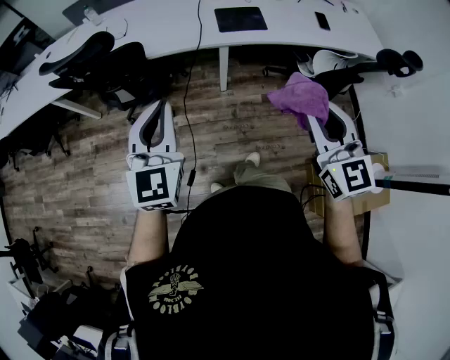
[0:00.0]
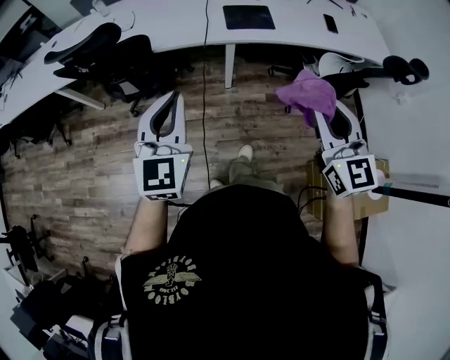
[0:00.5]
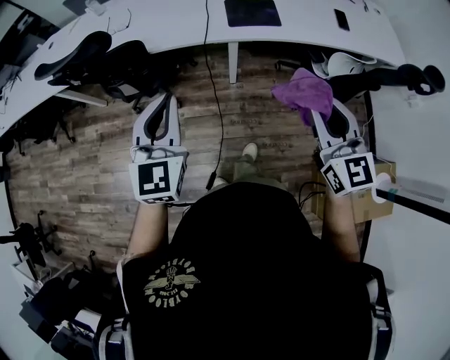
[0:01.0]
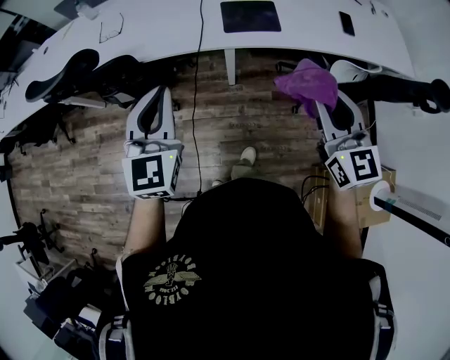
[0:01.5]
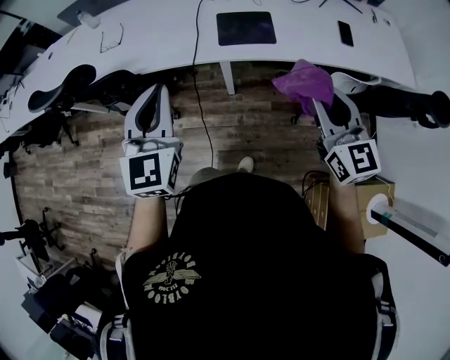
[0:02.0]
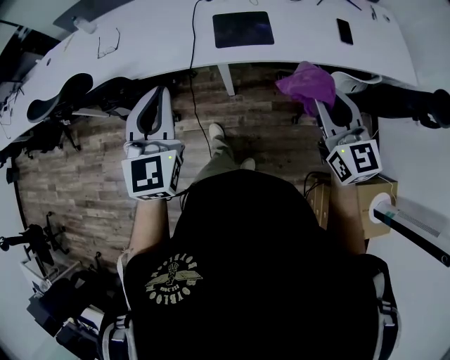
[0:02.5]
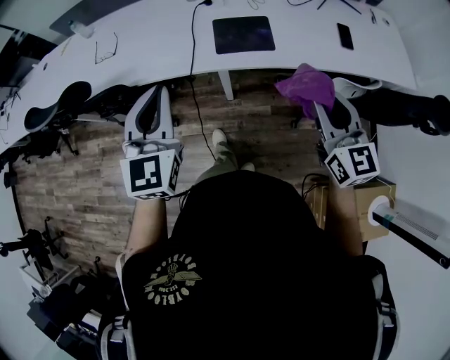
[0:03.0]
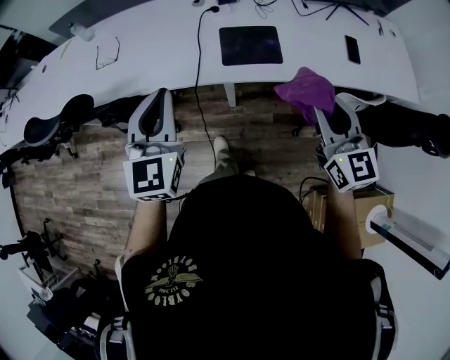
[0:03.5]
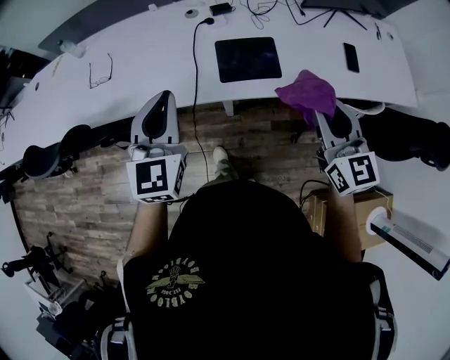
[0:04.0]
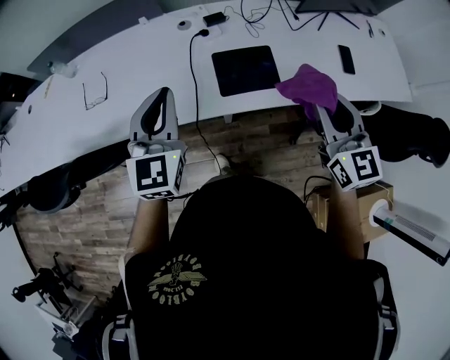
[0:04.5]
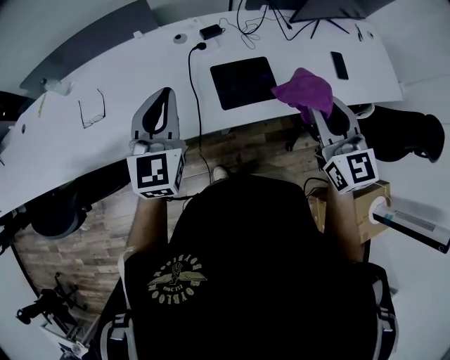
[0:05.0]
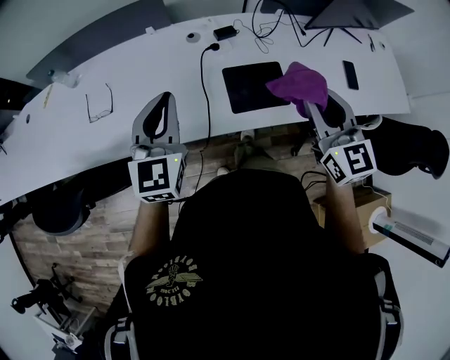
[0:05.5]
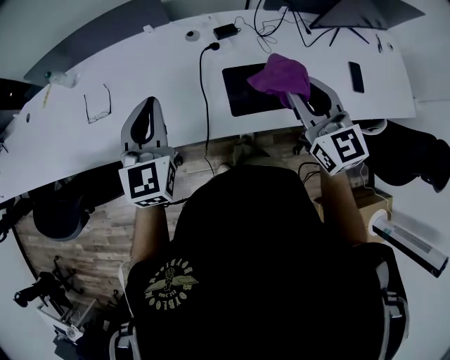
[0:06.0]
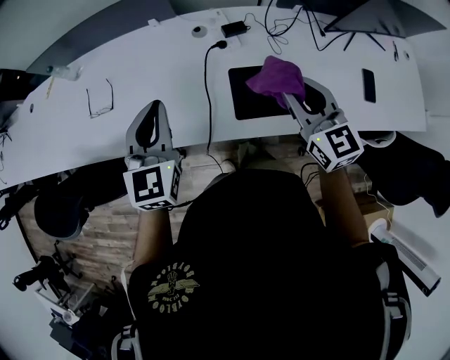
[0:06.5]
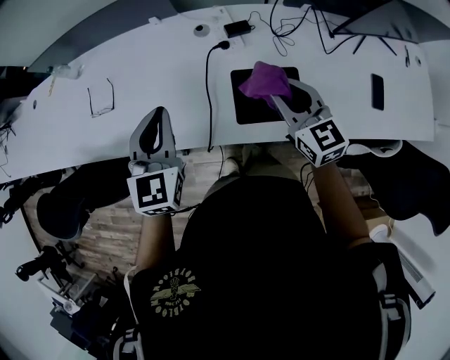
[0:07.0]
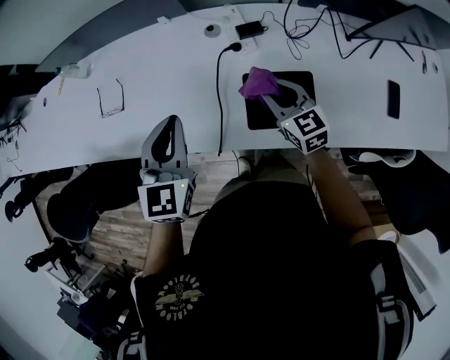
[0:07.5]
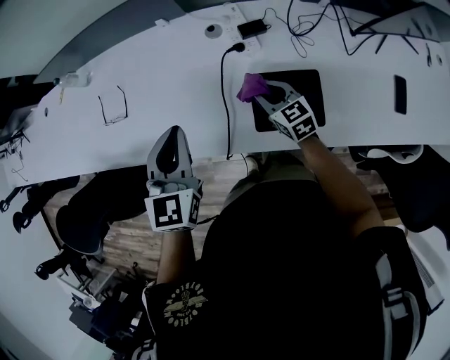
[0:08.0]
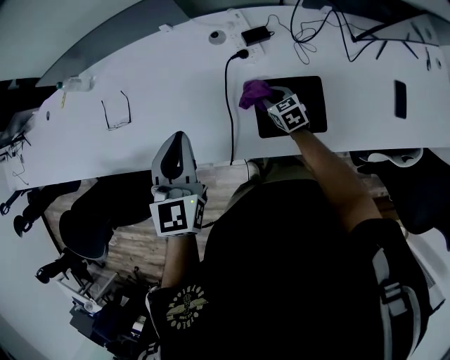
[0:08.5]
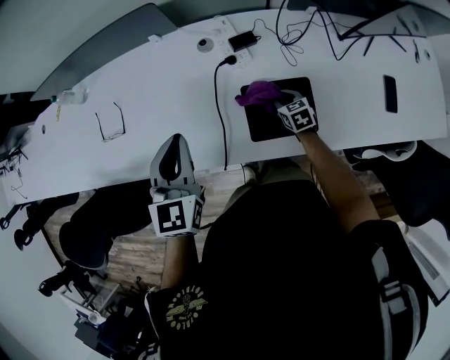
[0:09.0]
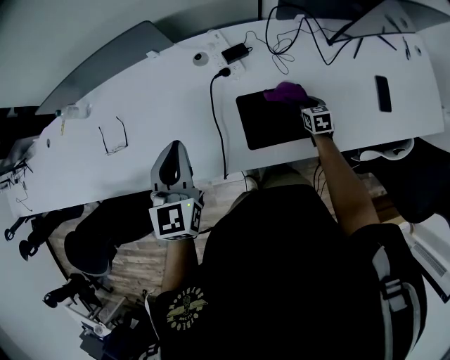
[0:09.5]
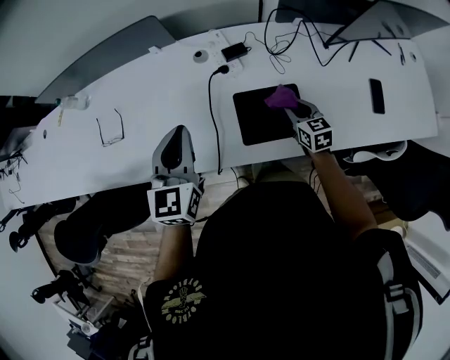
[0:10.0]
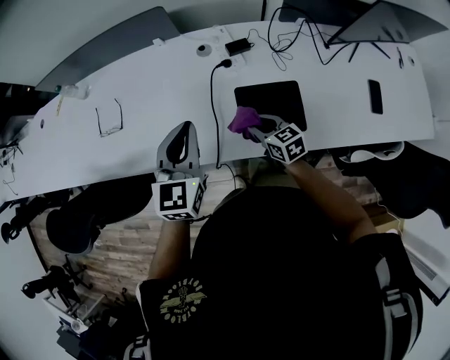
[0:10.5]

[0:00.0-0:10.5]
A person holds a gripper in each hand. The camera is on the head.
0:00.0 to 0:02.0: Both grippers move forward and to the right, roughly 25 cm.
0:02.0 to 0:04.0: Both grippers travel together forward, roughly 20 cm.
0:04.0 to 0:06.5: The left gripper goes approximately 20 cm forward, while the right gripper heads forward and to the left, covering about 25 cm.
0:06.5 to 0:08.5: The left gripper ends up some 5 cm from where it was. The right gripper shifts about 35 cm downward, and tips its fingers downward by about 30 degrees.
0:08.5 to 0:10.5: The right gripper heads backward and upward, covering some 15 cm, and goes to the right and returns, approximately 20 cm each way.

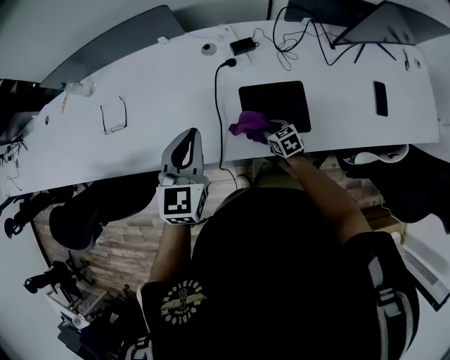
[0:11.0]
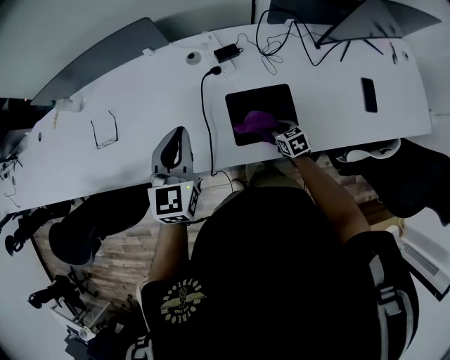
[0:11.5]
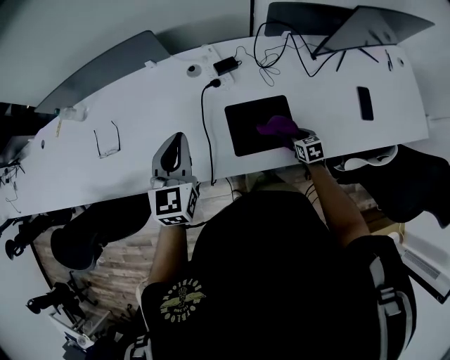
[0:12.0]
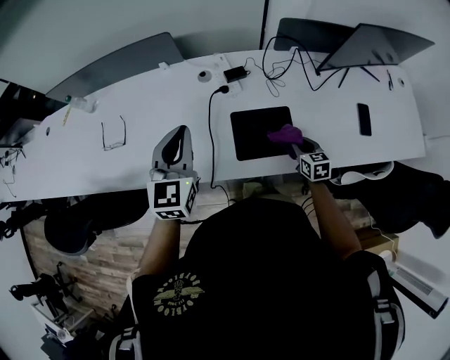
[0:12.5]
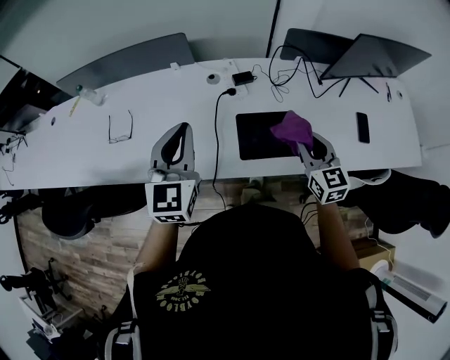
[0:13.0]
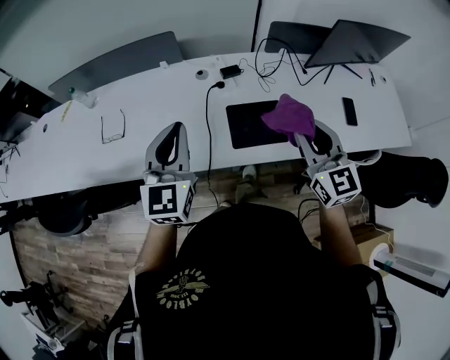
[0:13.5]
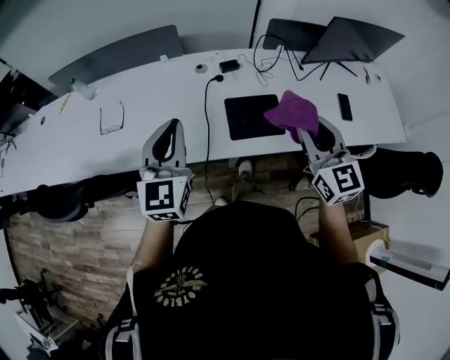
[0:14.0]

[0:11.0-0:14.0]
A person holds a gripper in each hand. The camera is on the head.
0:11.0 to 0:12.5: The right gripper heads to the right and upward, covering some 20 cm, and changes its angle by about 20 degrees; the left gripper changes place by approximately 5 cm.
0:12.5 to 0:14.0: The right gripper travels upward by some 35 cm, and tips its fingers upward by some 40 degrees, while the left gripper is displaced backward and upward by approximately 15 cm.

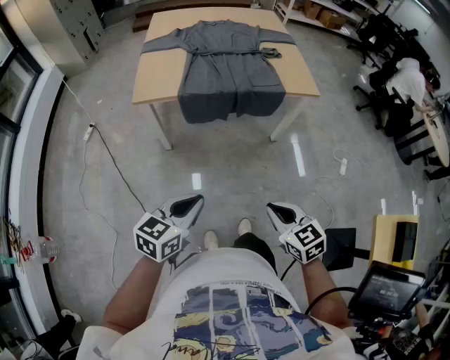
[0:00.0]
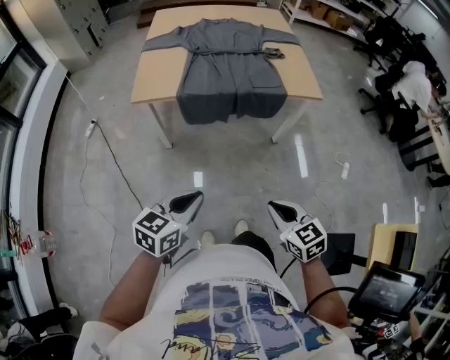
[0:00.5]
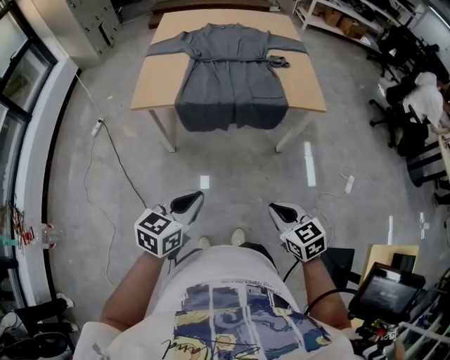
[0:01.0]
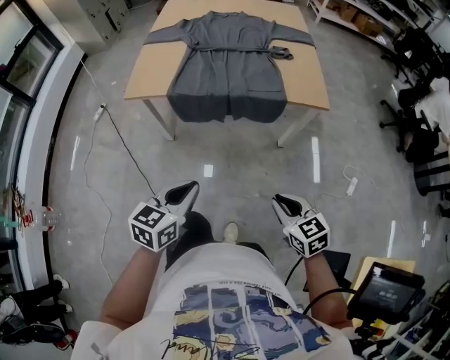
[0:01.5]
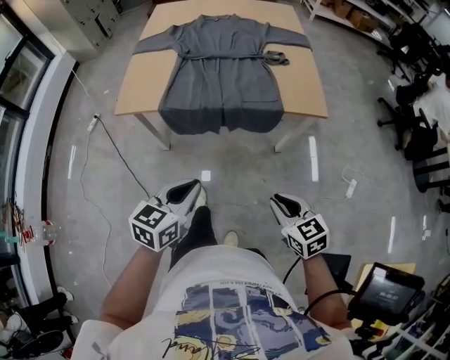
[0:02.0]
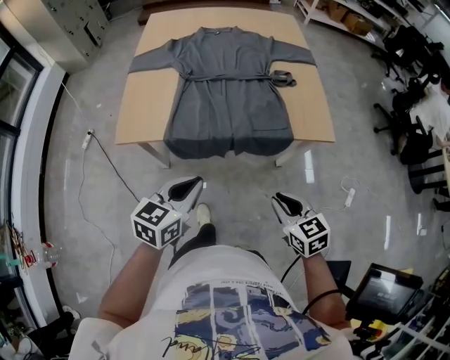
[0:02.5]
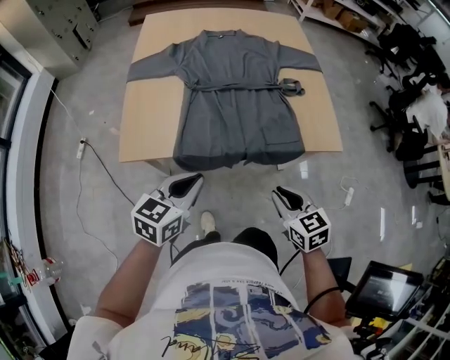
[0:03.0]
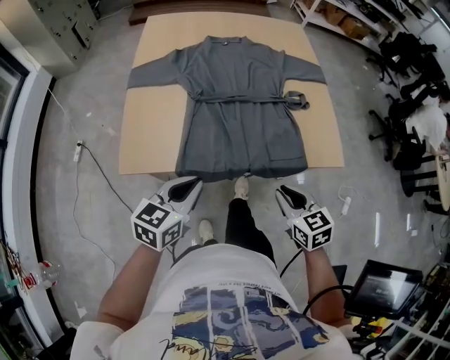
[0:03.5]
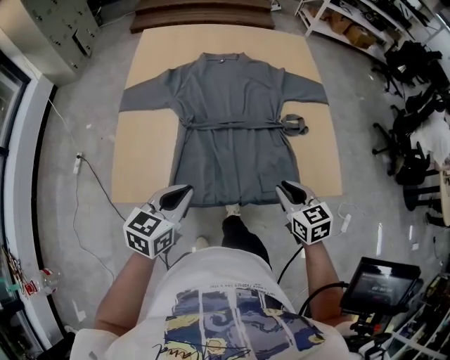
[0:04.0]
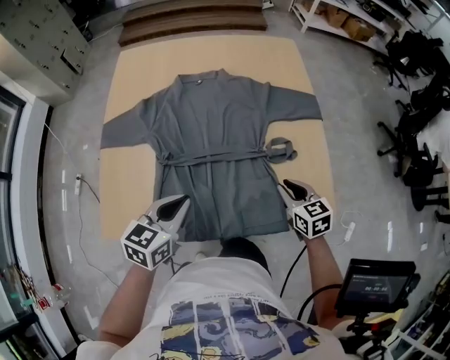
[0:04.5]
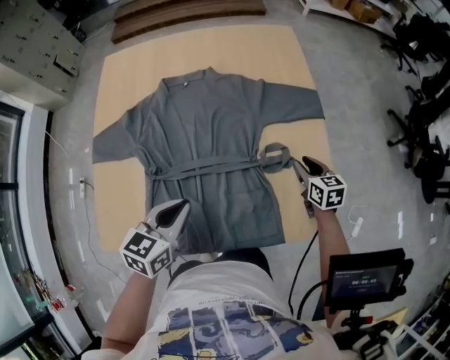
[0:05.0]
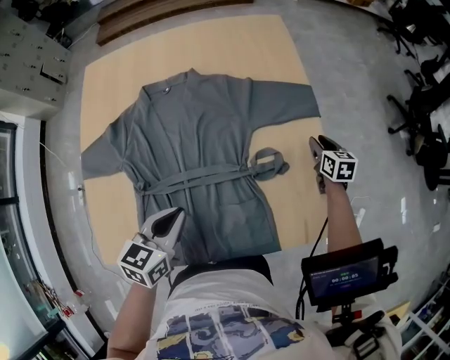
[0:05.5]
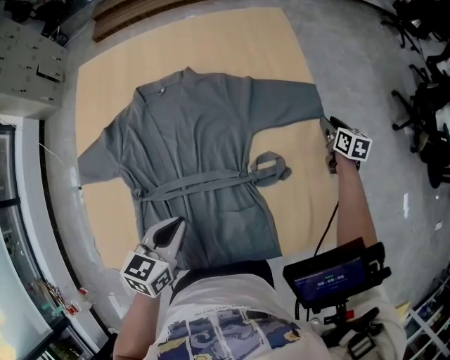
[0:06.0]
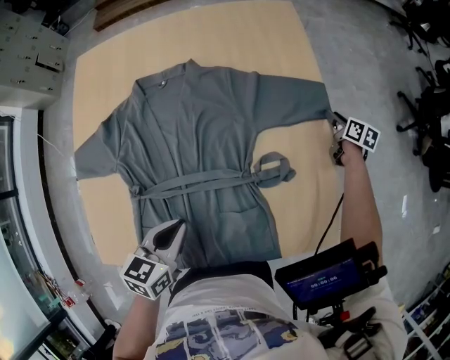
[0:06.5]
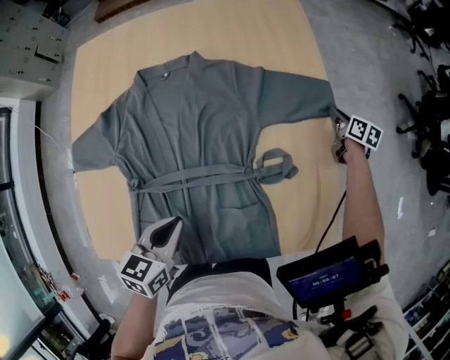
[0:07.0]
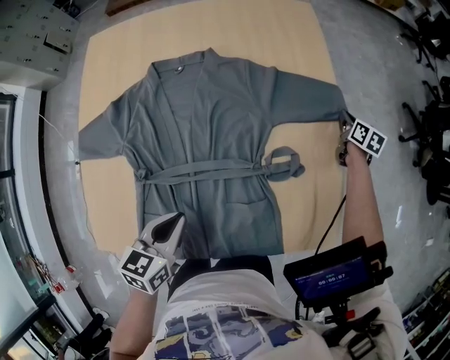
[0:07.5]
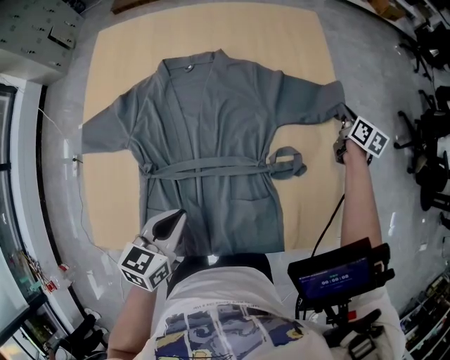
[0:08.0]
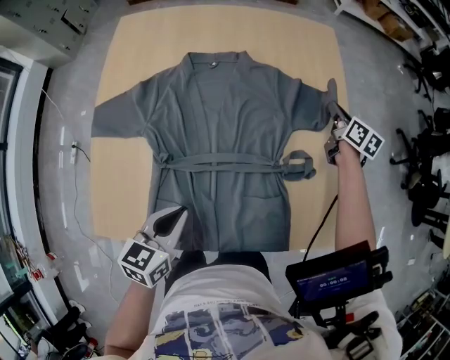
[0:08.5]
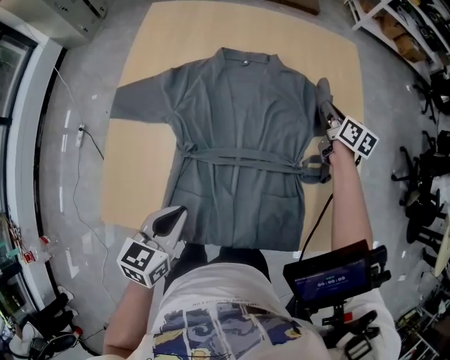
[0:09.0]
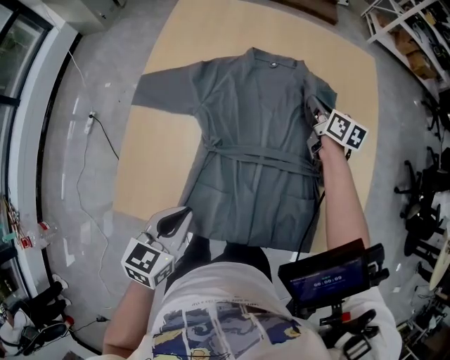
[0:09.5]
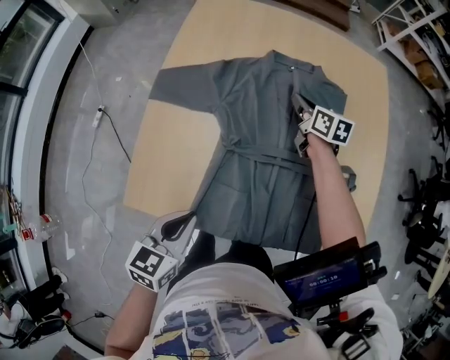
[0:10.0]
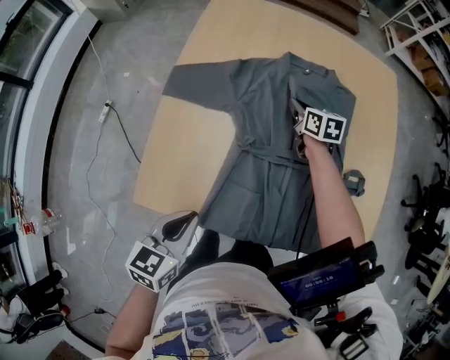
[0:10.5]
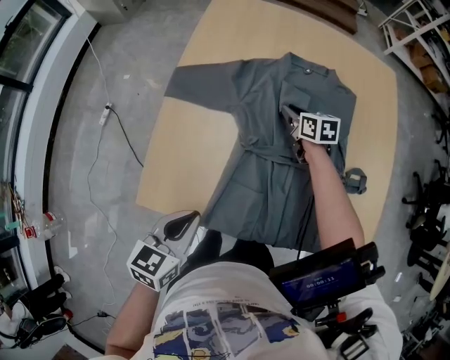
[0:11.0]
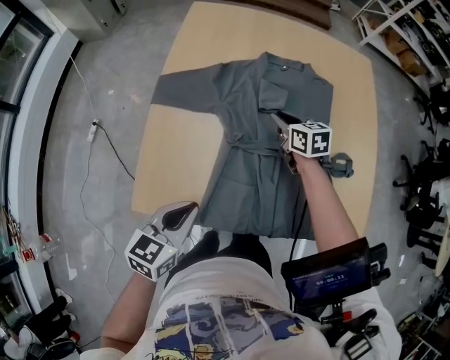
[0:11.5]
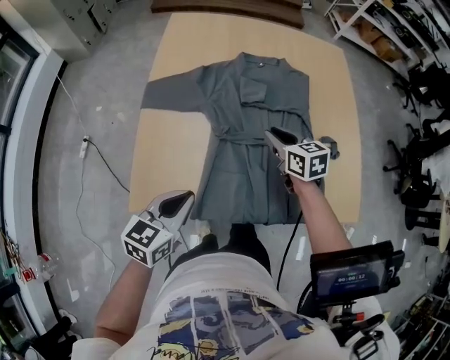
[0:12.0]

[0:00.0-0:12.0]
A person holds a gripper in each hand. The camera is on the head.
0:00.0 to 0:02.0: Both grippers travel together forward and to the right, about 20 cm.
0:02.0 to 0:04.0: The left gripper is displaced forward and to the left by about 35 cm. Meanwhile the right gripper shifts roughly 35 cm forward.
0:04.0 to 0:06.0: The right gripper travels forward and to the right by some 50 cm, turns by about 30 degrees, and opens up, while the left gripper goes roughly 25 cm forward and to the right.
0:06.0 to 0:08.0: The right gripper travels upward and to the left by approximately 10 cm, and closes up, while the left gripper shifts by roughly 5 cm.
0:08.0 to 0:10.0: The right gripper goes roughly 50 cm to the left, and swivels roughly 30 degrees, while the left gripper is displaced to the left and backward by approximately 20 cm.
0:10.0 to 0:12.0: The right gripper is displaced backward by some 20 cm.

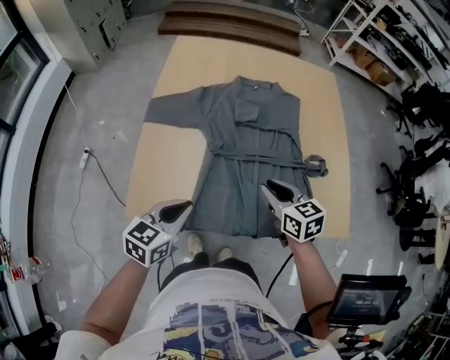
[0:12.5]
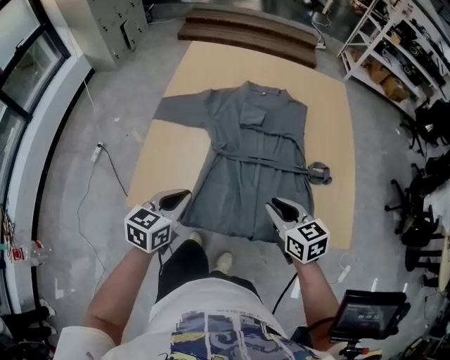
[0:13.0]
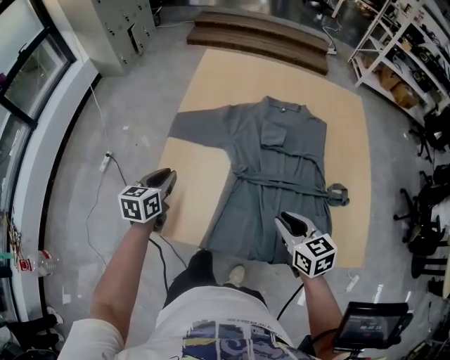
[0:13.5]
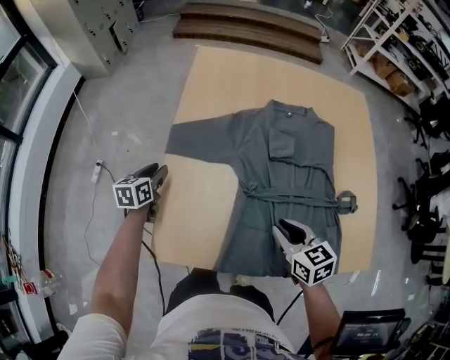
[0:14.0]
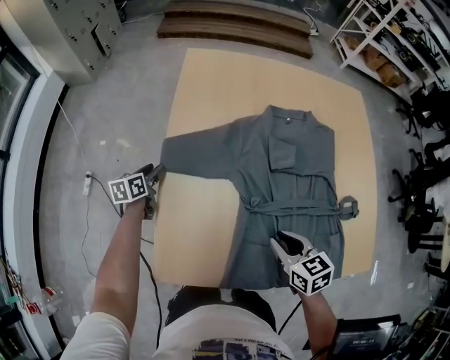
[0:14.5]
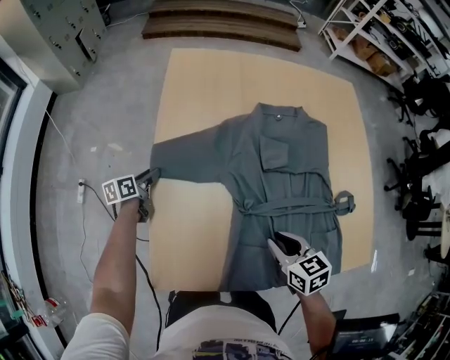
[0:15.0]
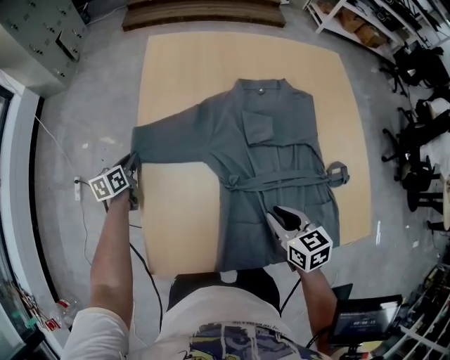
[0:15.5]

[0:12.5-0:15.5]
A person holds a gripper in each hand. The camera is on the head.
0:12.5 to 0:14.0: The right gripper is displaced to the left by approximately 5 cm. The left gripper is displaced forward, to the left and downward by roughly 35 cm, changes its angle by some 30 degrees, and opens.
0:14.0 to 0:15.5: The left gripper goes approximately 10 cm forward and downward.
